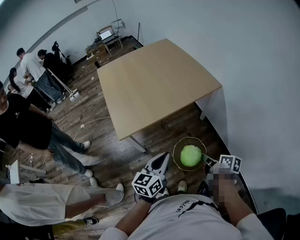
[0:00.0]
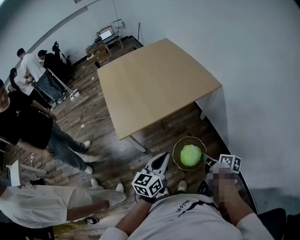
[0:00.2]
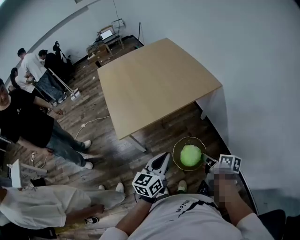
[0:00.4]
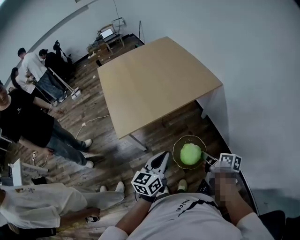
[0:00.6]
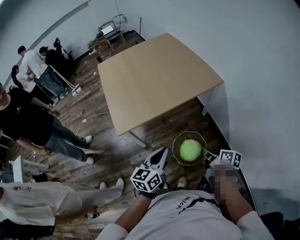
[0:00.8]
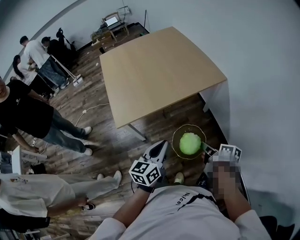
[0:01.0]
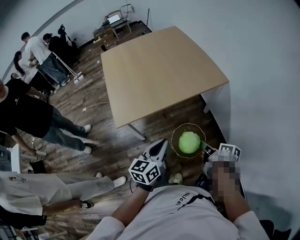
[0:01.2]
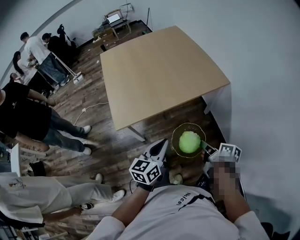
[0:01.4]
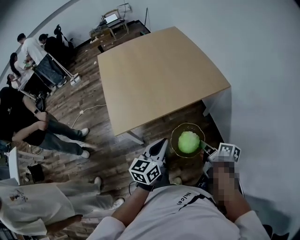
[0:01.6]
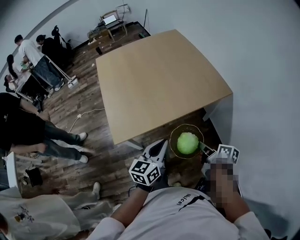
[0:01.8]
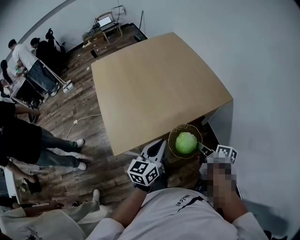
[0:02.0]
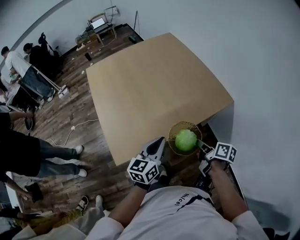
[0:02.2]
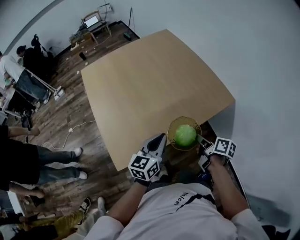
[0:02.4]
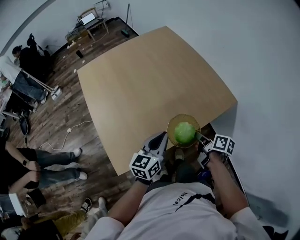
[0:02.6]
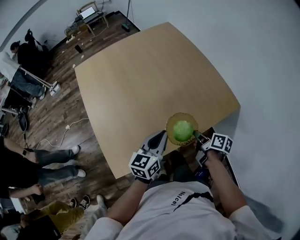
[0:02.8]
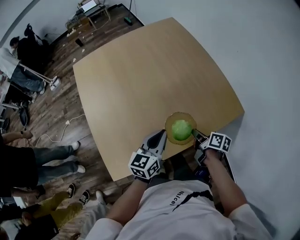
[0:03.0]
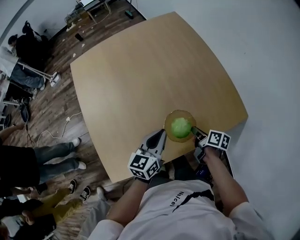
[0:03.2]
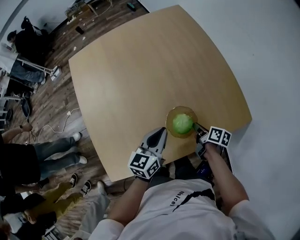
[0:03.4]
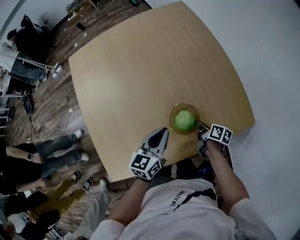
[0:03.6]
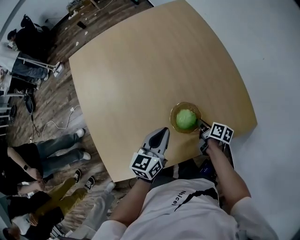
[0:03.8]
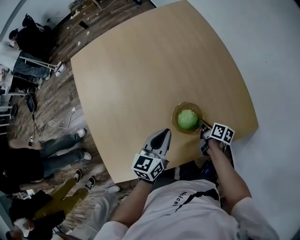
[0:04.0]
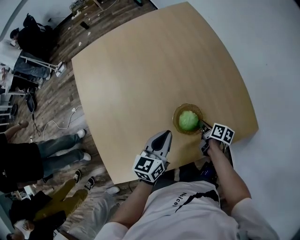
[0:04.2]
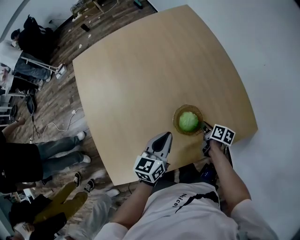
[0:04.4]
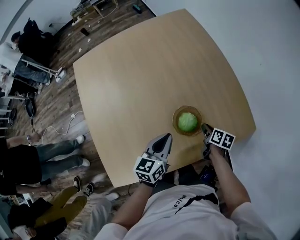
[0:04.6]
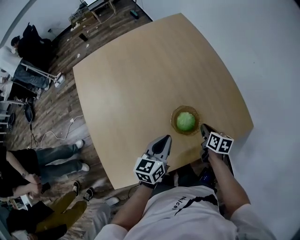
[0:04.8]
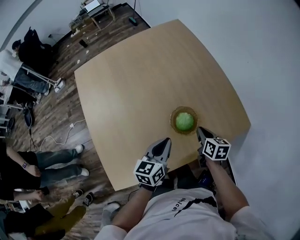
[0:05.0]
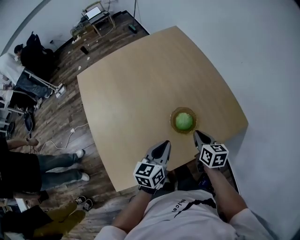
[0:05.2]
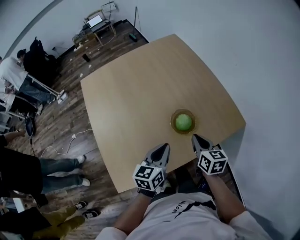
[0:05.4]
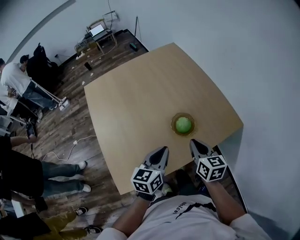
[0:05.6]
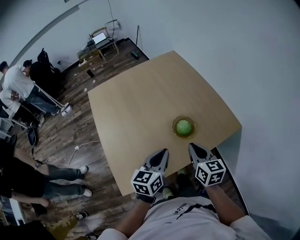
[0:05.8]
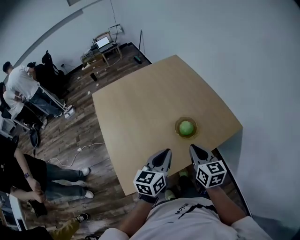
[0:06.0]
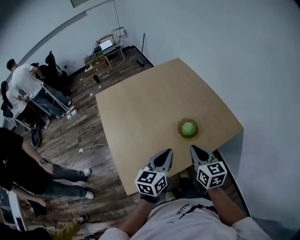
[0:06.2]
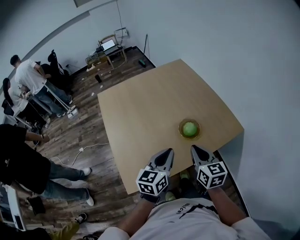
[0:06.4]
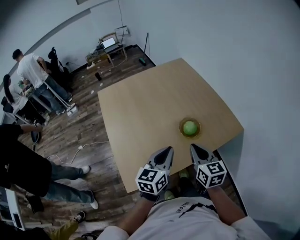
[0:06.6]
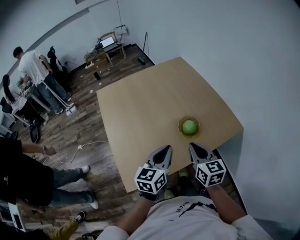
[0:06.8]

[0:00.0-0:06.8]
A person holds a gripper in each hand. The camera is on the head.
0:00.0 to 0:01.4: The two grippers go some 10 cm forward.
0:01.4 to 0:02.8: Both grippers travel together forward, about 35 cm.
0:02.8 to 0:04.0: The two grippers go approximately 20 cm forward and downward.
0:04.0 to 0:05.4: The right gripper shifts approximately 25 cm upward and backward, and turns by some 40 degrees; the left gripper heads backward and upward, covering roughly 10 cm.
0:05.4 to 0:06.8: The left gripper moves upward and backward, roughly 15 cm, while the right gripper heads upward, backward and to the left, covering approximately 20 cm.

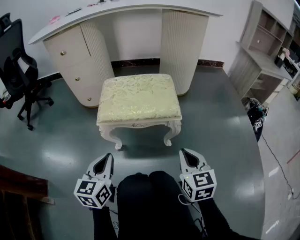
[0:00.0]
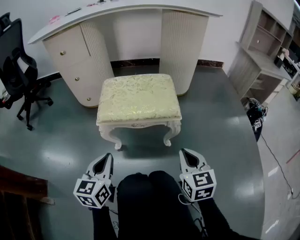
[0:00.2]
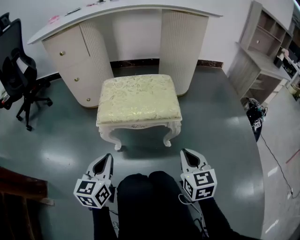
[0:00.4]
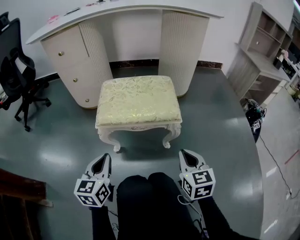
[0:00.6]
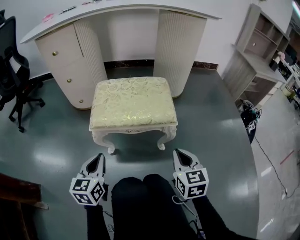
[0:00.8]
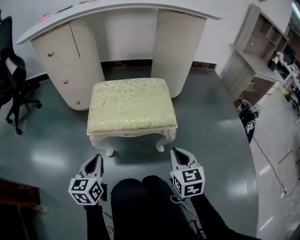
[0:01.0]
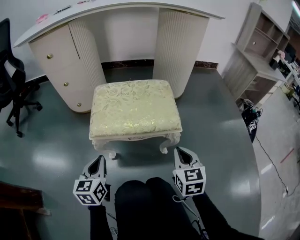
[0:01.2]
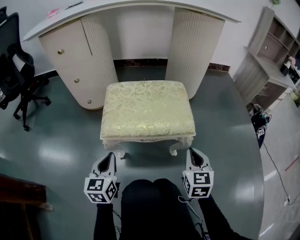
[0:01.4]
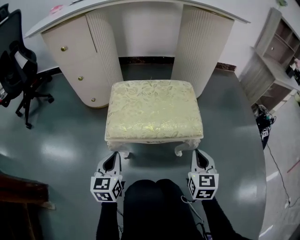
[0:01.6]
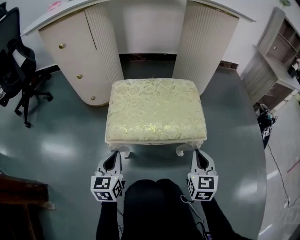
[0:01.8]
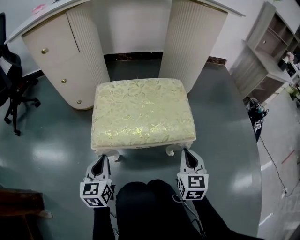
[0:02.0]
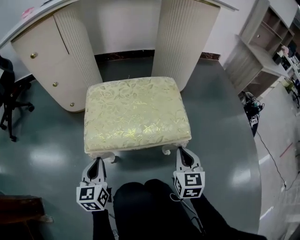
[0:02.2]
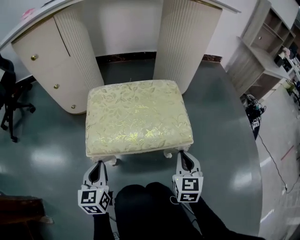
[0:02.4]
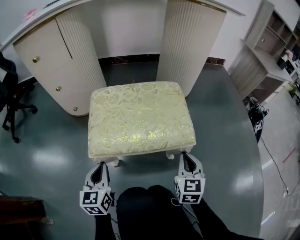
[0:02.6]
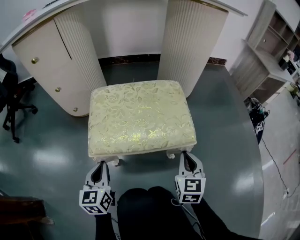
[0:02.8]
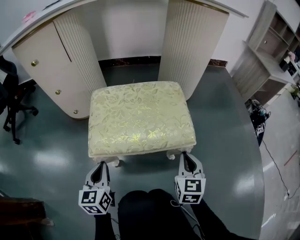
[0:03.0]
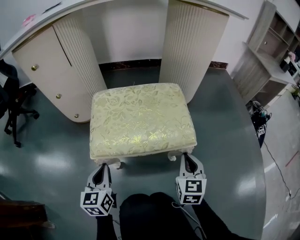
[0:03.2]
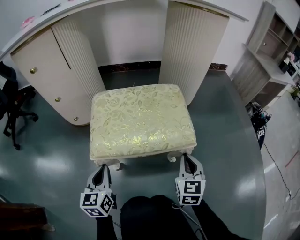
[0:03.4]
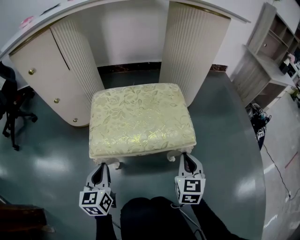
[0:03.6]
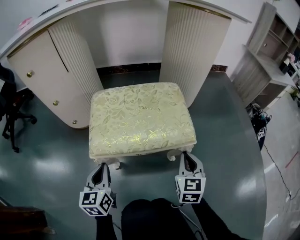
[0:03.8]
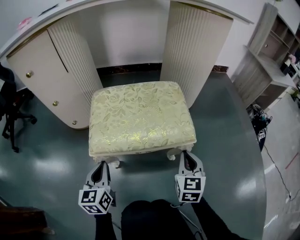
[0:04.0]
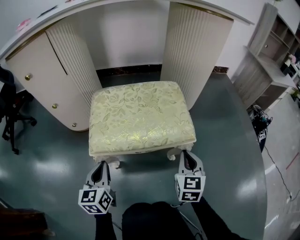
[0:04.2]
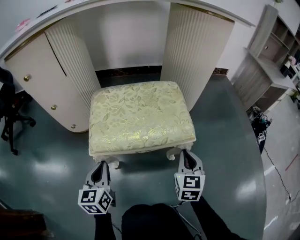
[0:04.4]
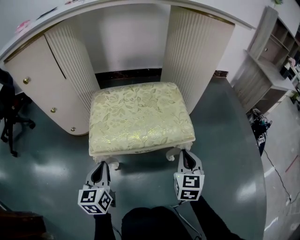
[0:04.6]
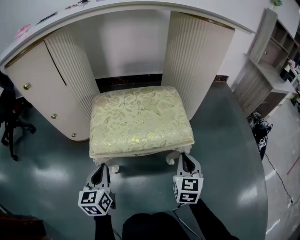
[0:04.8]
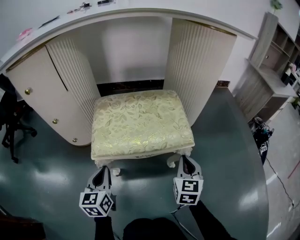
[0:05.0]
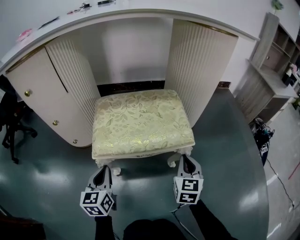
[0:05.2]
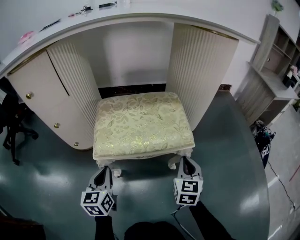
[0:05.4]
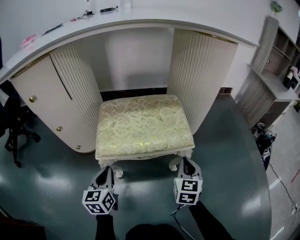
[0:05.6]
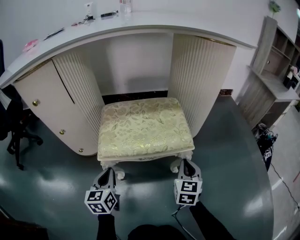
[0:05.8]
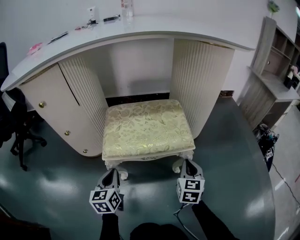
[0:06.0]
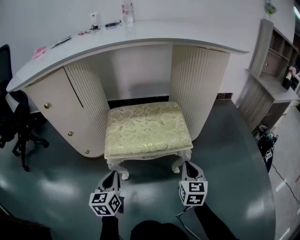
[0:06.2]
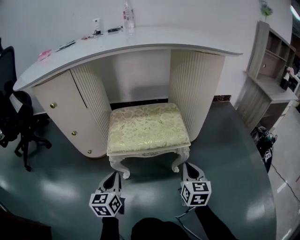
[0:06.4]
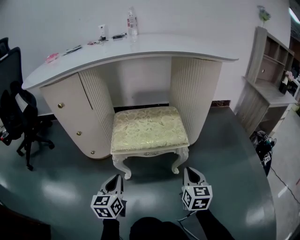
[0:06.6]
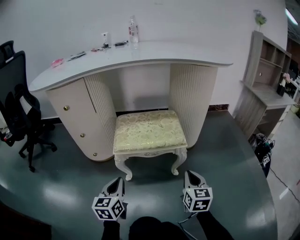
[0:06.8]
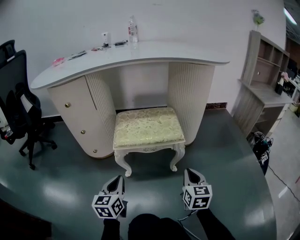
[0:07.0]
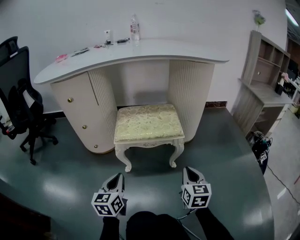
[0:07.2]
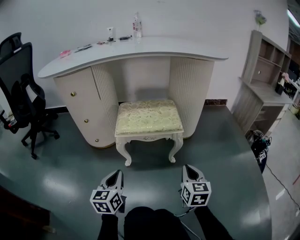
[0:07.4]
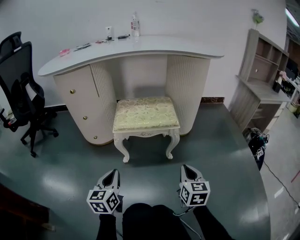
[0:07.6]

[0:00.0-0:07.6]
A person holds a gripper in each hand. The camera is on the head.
0:00.0 to 0:01.6: The two grippers go approximately 15 cm forward and downward.
0:01.6 to 0:03.0: The right gripper moves about 5 cm.
0:03.0 to 0:06.0: There are only small adjustments of the grippers.
0:06.0 to 0:07.6: The left gripper goes some 25 cm backward and upward. The right gripper travels backward by roughly 20 cm.

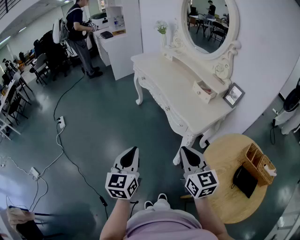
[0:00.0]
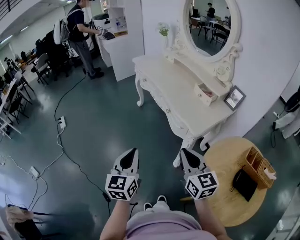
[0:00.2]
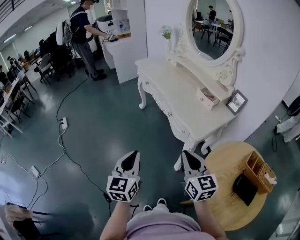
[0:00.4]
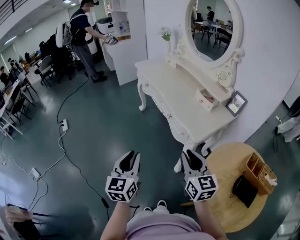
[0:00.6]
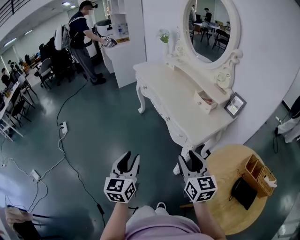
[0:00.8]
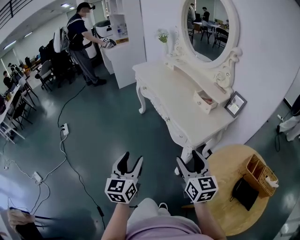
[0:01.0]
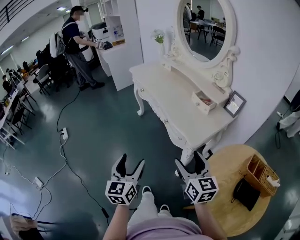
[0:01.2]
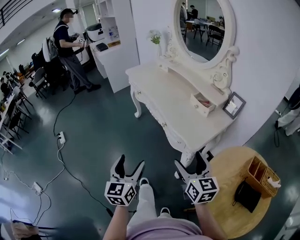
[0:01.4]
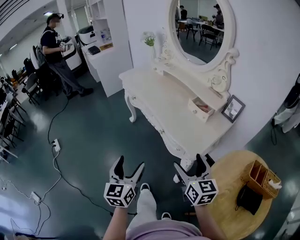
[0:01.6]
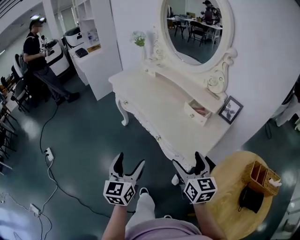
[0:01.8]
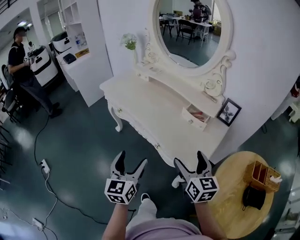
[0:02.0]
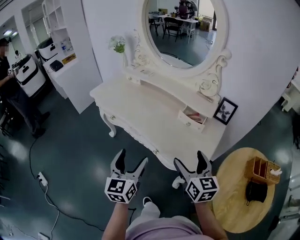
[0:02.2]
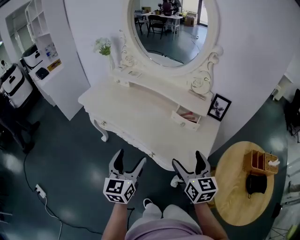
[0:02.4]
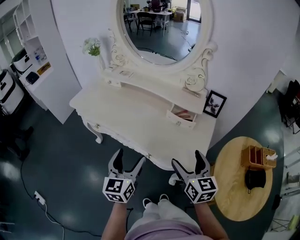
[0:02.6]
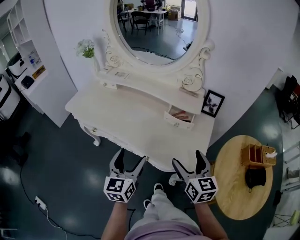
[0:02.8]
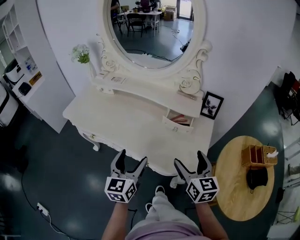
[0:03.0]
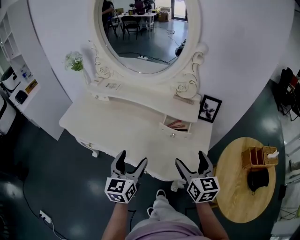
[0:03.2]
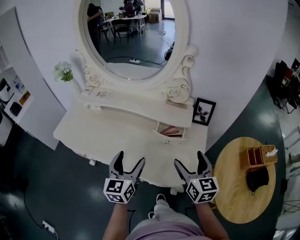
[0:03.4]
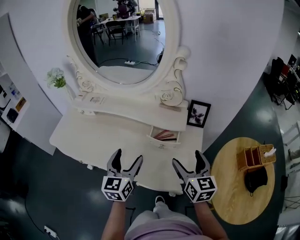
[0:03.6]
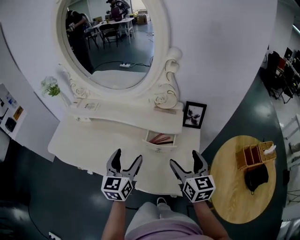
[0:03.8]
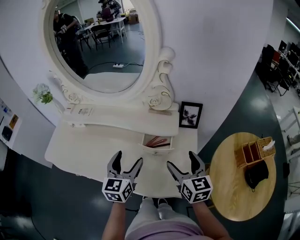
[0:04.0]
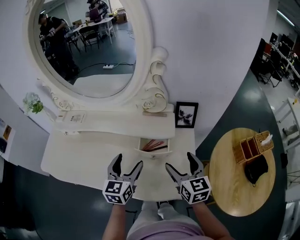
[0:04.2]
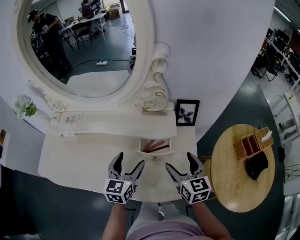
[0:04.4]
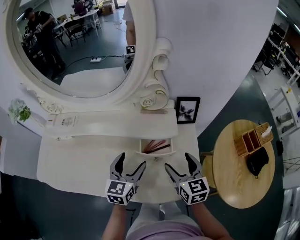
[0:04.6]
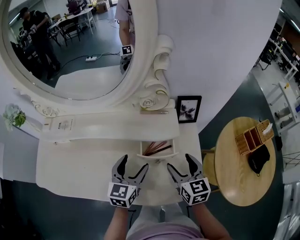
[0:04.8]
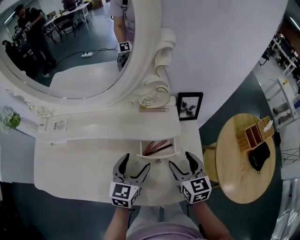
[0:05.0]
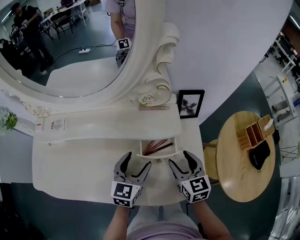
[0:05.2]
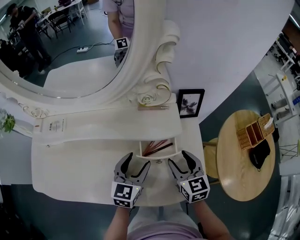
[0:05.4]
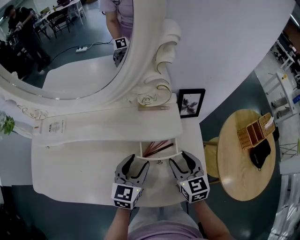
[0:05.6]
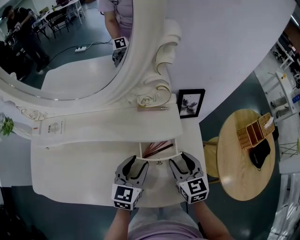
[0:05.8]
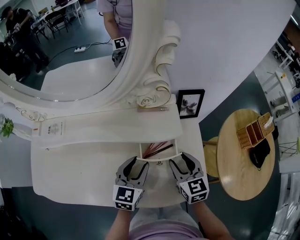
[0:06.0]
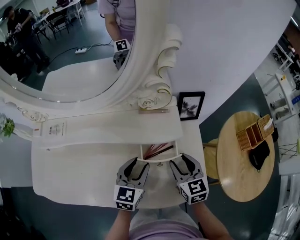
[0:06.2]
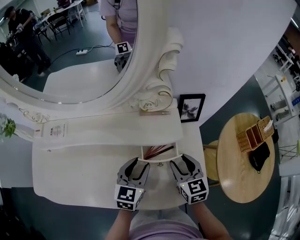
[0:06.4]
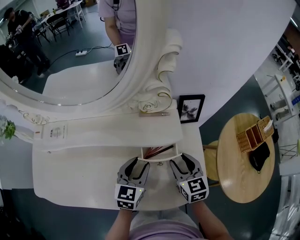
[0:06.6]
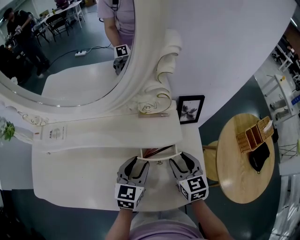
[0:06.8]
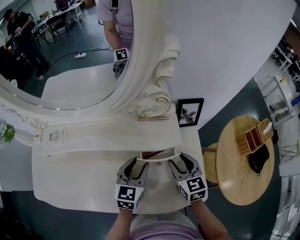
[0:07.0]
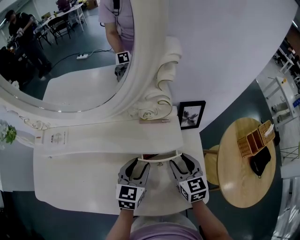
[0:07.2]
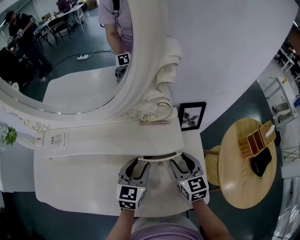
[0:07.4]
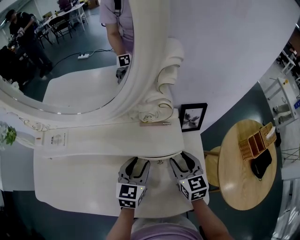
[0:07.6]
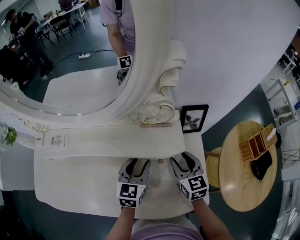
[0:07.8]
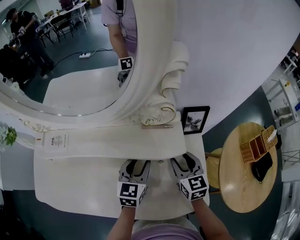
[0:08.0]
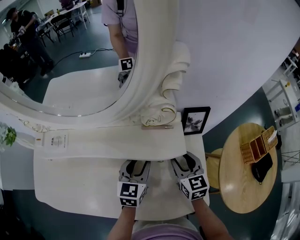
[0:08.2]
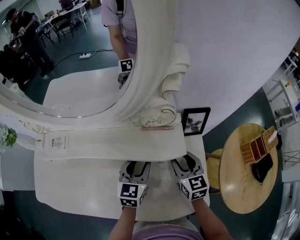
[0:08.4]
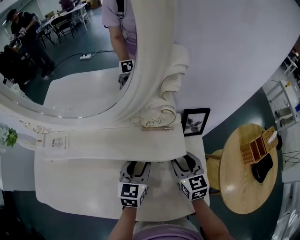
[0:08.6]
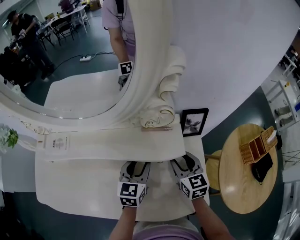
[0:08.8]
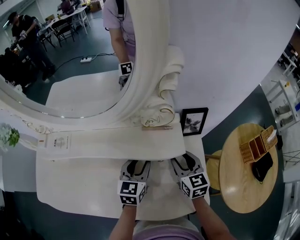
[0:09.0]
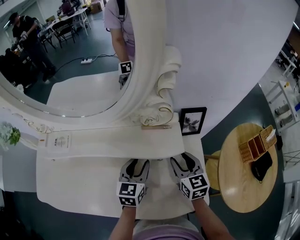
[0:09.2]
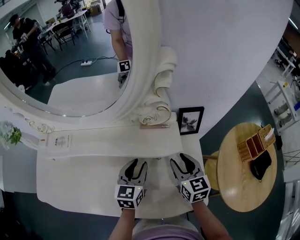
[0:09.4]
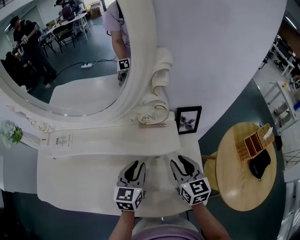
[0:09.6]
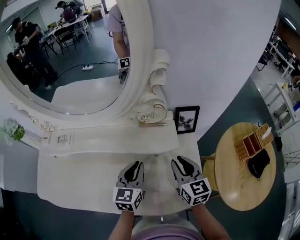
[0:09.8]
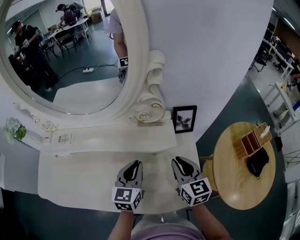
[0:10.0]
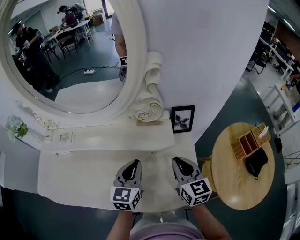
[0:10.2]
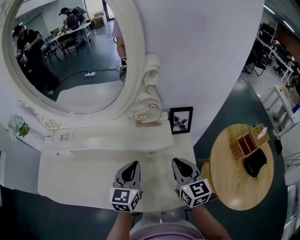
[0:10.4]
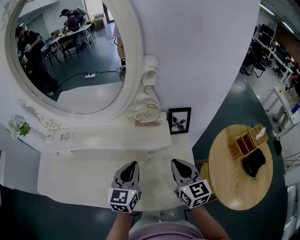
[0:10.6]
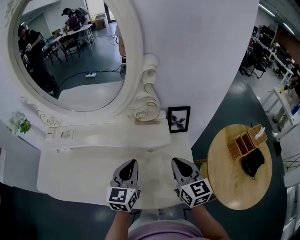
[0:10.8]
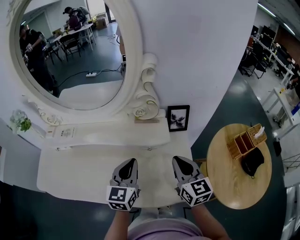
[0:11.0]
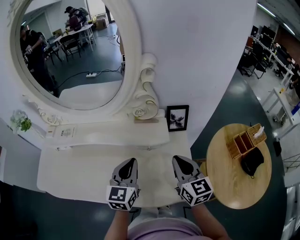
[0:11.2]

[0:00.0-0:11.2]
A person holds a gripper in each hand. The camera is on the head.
0:00.0 to 0:01.6: The left gripper goes roughly 15 cm forward, and opens its fingers. The right gripper is displaced forward and to the right by some 15 cm, and opens.
0:01.6 to 0:03.2: The left gripper ends up some 35 cm from where it was, and changes its angle by about 40 degrees; the right gripper changes place by roughly 20 cm, and rotates approximately 40 degrees.
0:03.2 to 0:04.8: The right gripper goes about 15 cm forward and downward. The left gripper shifts some 20 cm forward, and changes its angle by some 30 degrees.
0:04.8 to 0:06.4: The right gripper closes. The left gripper closes up.
0:06.4 to 0:08.0: Both grippers move forward, about 5 cm.
0:08.0 to 0:09.6: The right gripper shifts by approximately 5 cm.
0:09.6 to 0:11.2: Both grippers travel together upward and backward, roughly 10 cm.
